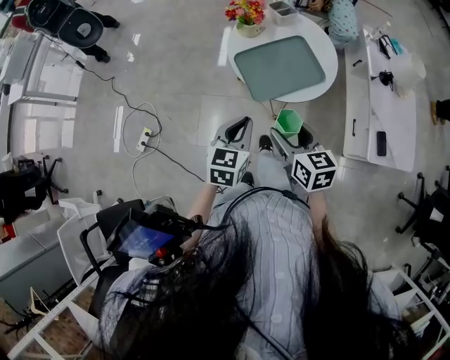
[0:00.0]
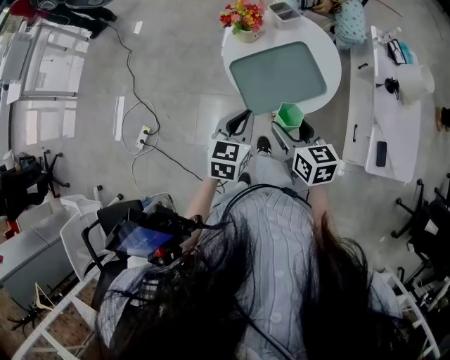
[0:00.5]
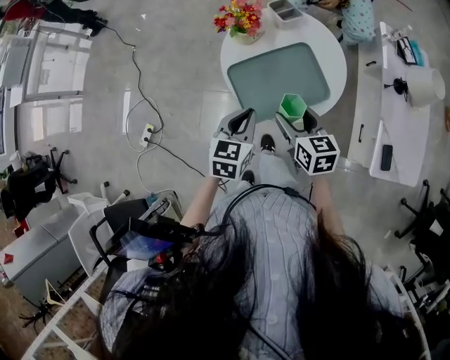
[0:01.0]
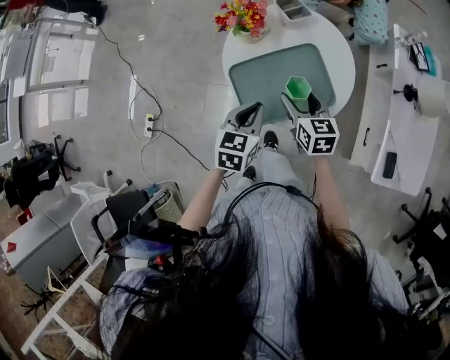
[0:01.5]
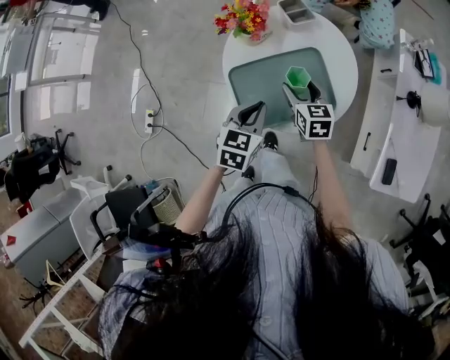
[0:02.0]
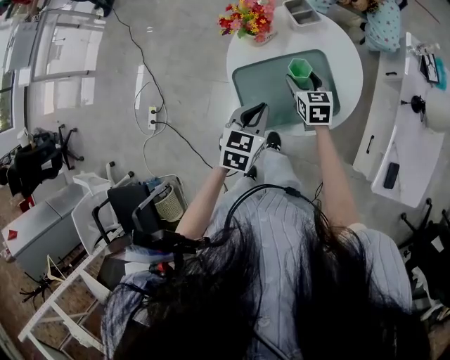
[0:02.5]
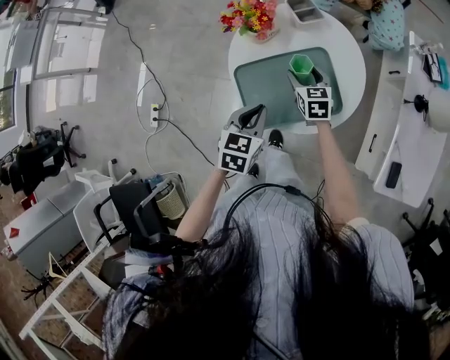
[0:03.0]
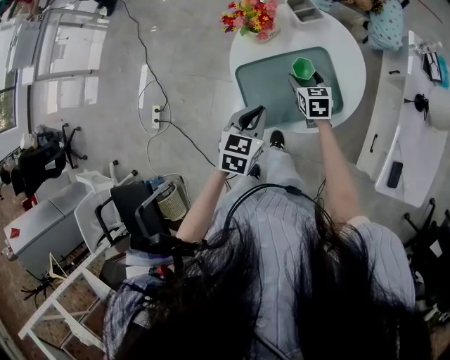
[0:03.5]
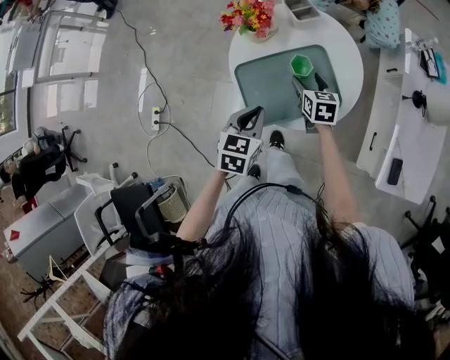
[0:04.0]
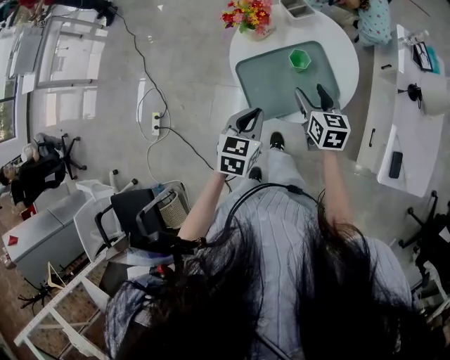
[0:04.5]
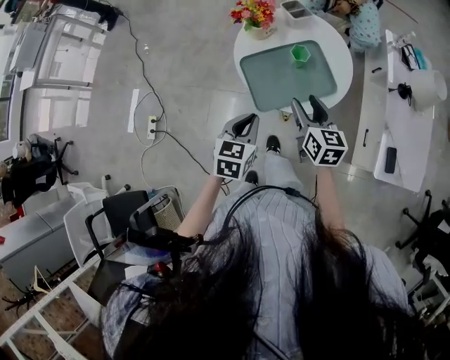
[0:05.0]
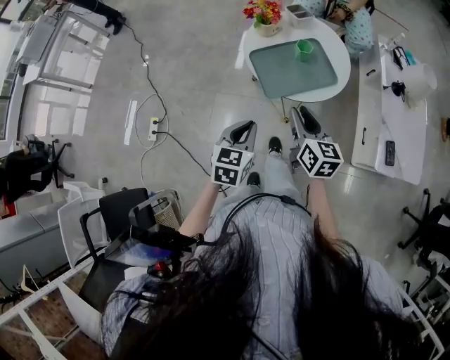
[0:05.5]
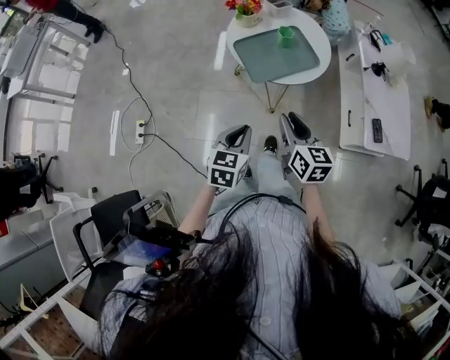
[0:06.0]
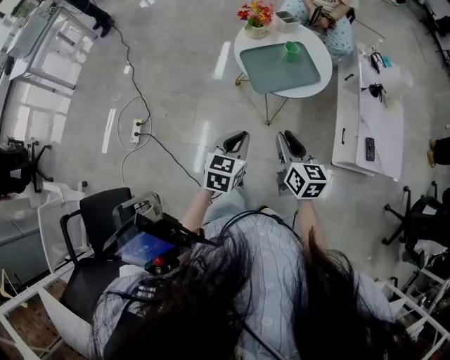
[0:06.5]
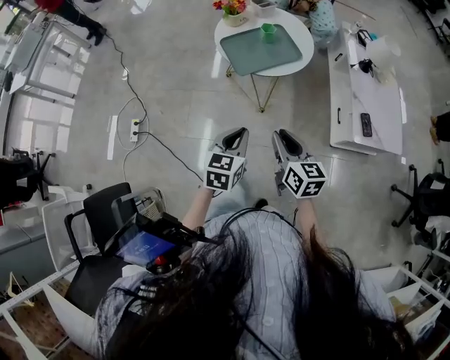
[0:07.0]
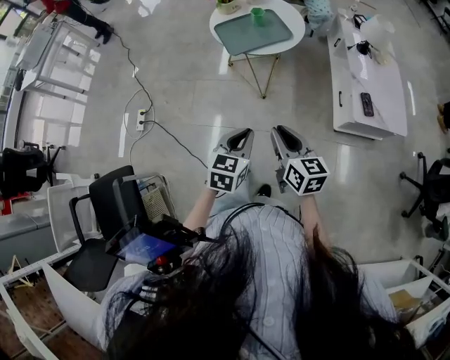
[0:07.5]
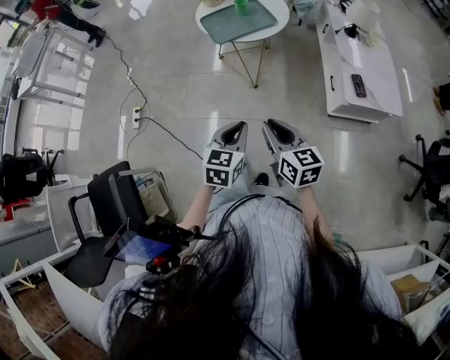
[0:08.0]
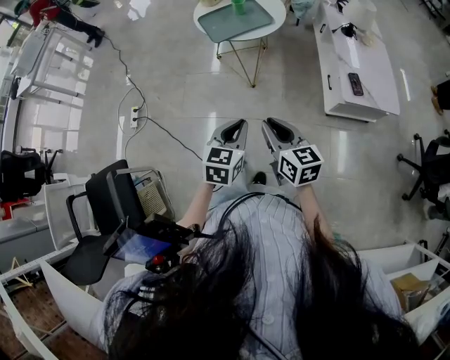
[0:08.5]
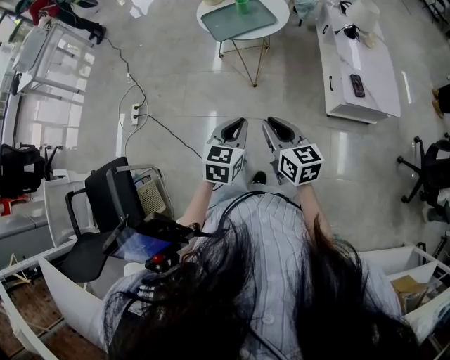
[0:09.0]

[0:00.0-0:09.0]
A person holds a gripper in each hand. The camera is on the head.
0:00.0 to 0:02.0: The left gripper moves forward and to the right, about 20 cm. The right gripper goes roughly 30 cm forward and downward.
0:02.0 to 0:04.5: The grippers both shift backward by about 5 cm.
0:04.5 to 0:07.0: Both grippers travel together backward, some 35 cm. The right gripper closes.
0:07.0 to 0:09.0: The right gripper goes some 15 cm backward. Meanwhile the left gripper moves backward and to the right, approximately 20 cm.

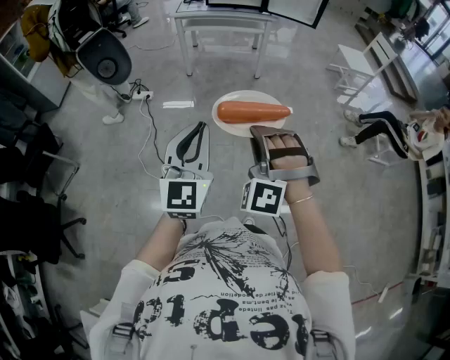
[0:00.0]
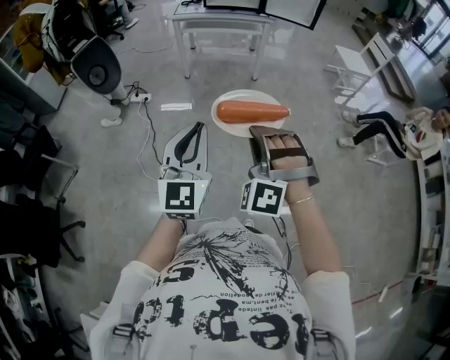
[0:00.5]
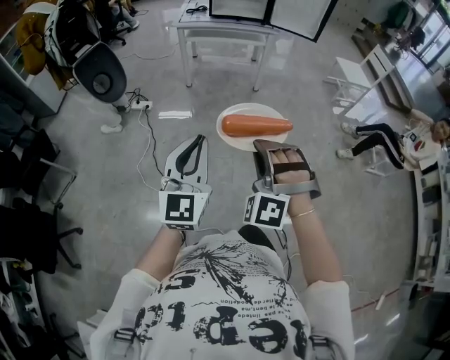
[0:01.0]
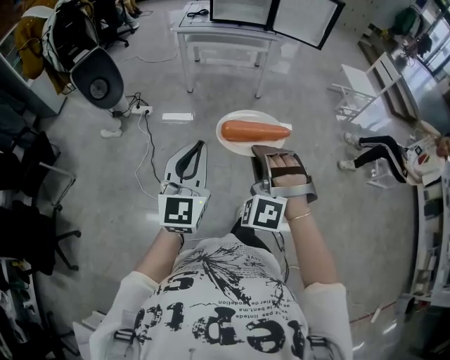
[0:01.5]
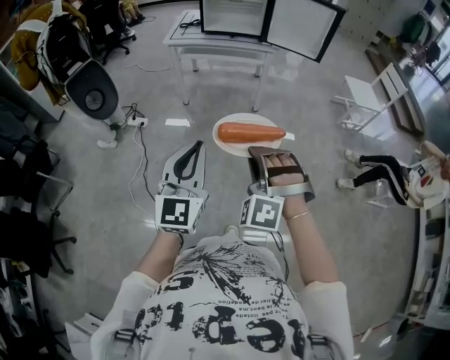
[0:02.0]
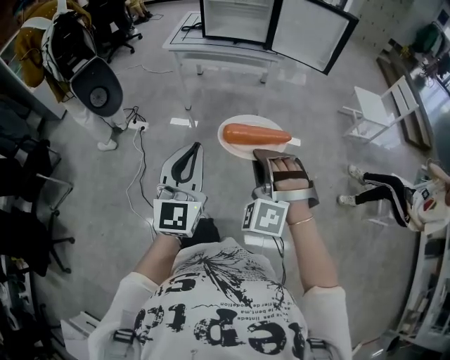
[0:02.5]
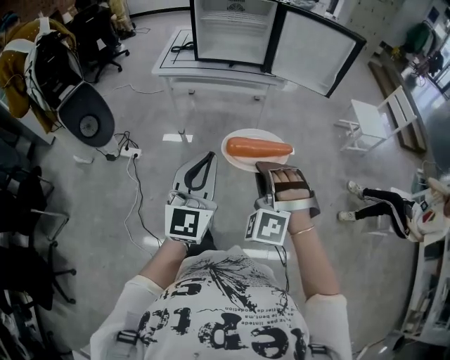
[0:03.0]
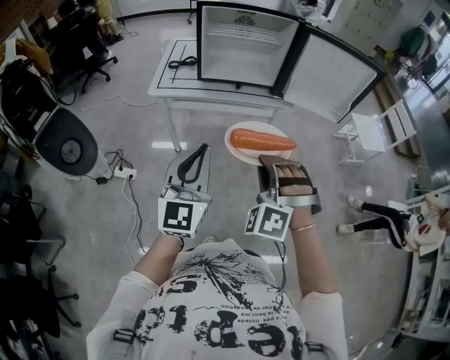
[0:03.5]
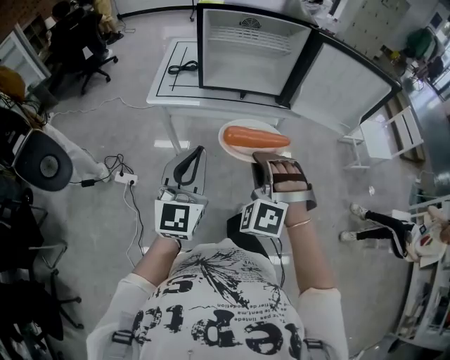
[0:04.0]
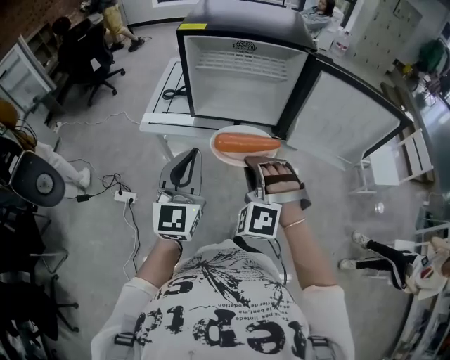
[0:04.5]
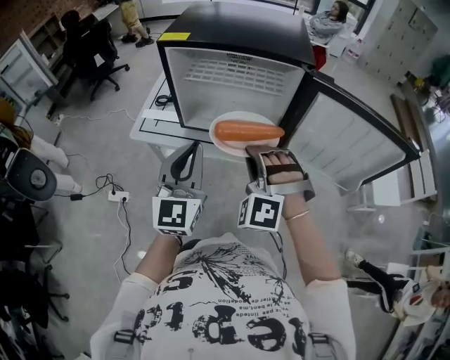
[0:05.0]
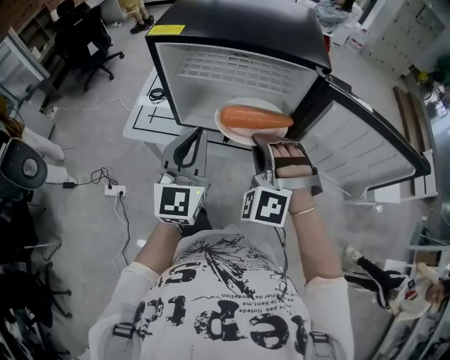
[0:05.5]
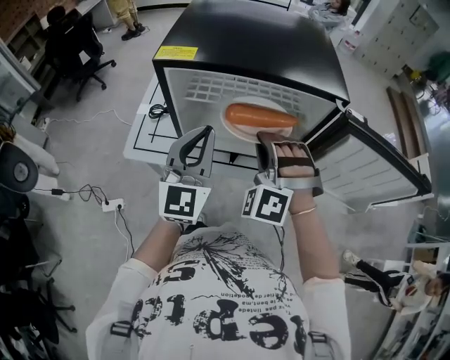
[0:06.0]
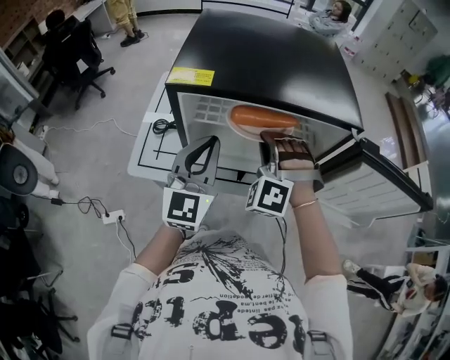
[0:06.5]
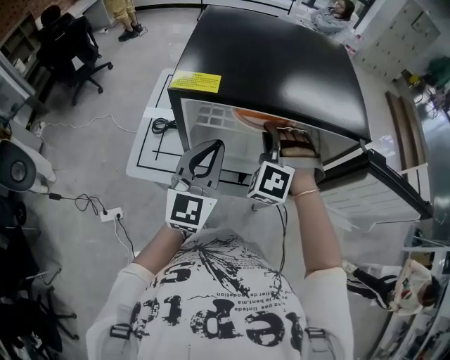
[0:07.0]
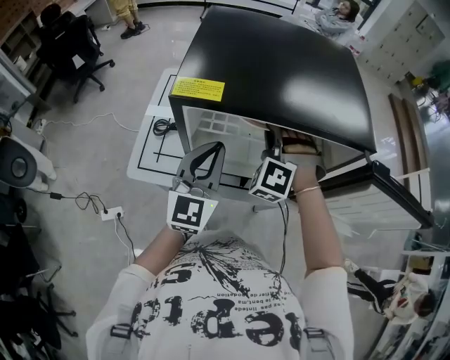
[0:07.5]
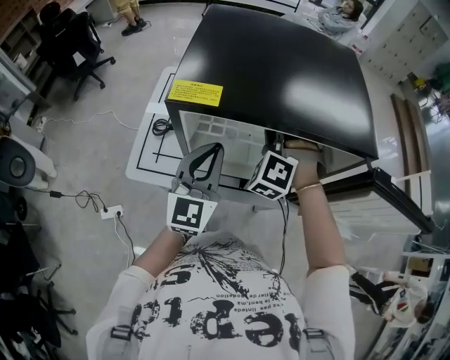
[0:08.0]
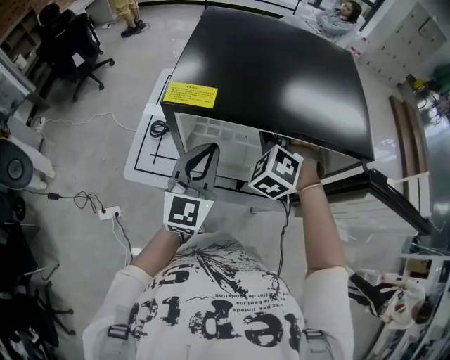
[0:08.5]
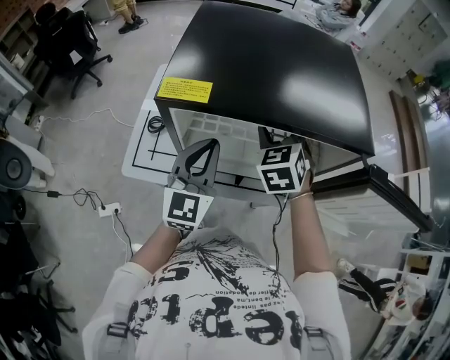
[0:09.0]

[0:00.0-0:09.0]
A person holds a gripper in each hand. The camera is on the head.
0:00.0 to 0:02.0: Both grippers travel together forward and to the right, approximately 25 cm.
0:02.0 to 0:04.5: The two grippers travel together, forward, about 70 cm.
0:04.5 to 0:07.0: The two grippers go some 35 cm forward.
0:07.0 to 0:09.0: The right gripper rolls clockwise, seen from behind, by approximately 50 degrees, and opens up.

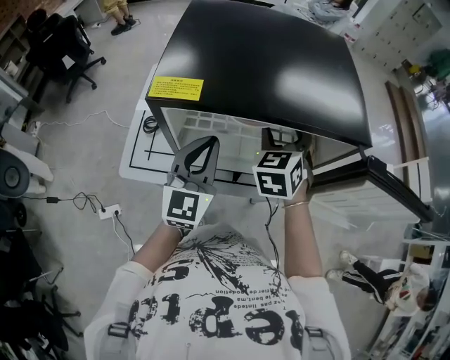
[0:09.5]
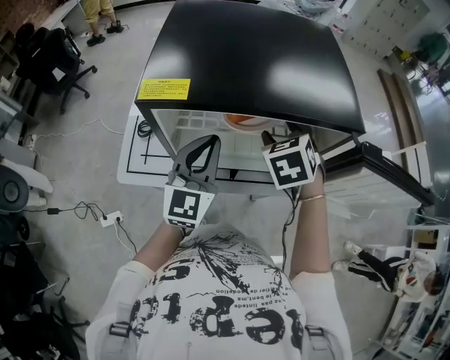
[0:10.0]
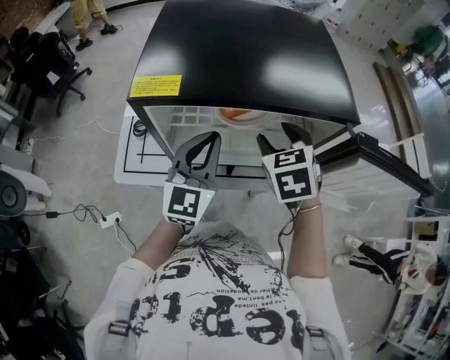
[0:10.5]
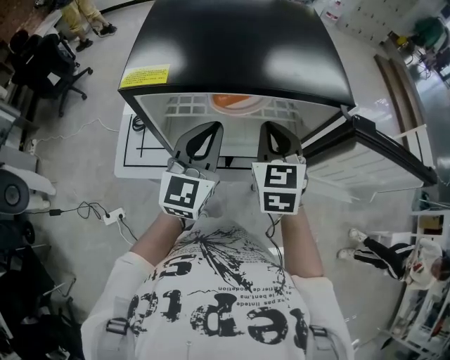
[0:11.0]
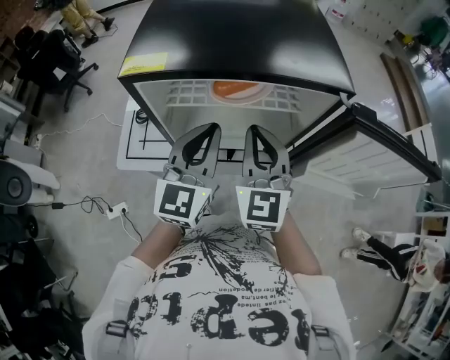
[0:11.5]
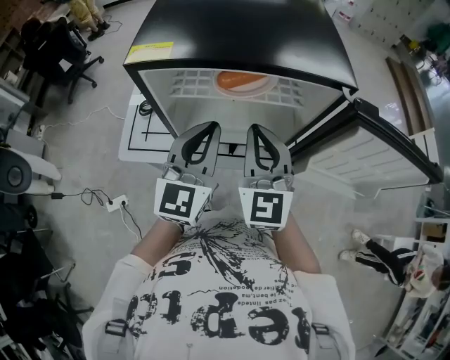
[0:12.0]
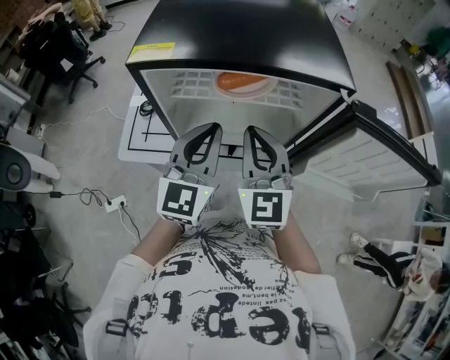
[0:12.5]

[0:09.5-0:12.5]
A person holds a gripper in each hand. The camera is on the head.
0:09.5 to 0:11.0: The left gripper is displaced to the right by approximately 5 cm, while the right gripper travels backward by approximately 5 cm, and closes.
0:11.0 to 0:12.5: Both grippers travel together backward, some 5 cm. The right gripper turns by approximately 20 degrees.

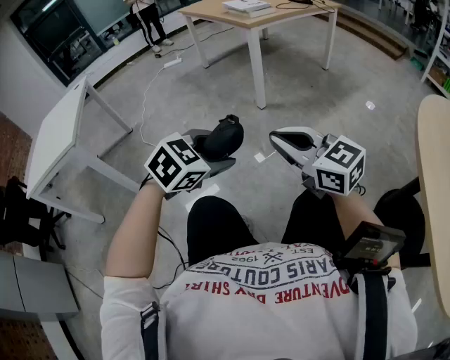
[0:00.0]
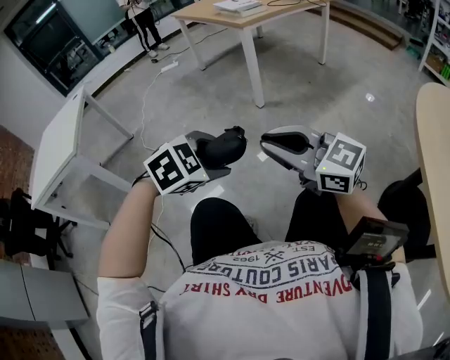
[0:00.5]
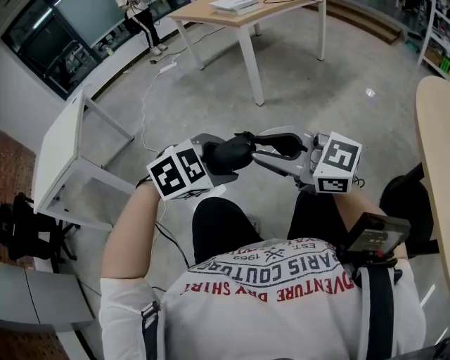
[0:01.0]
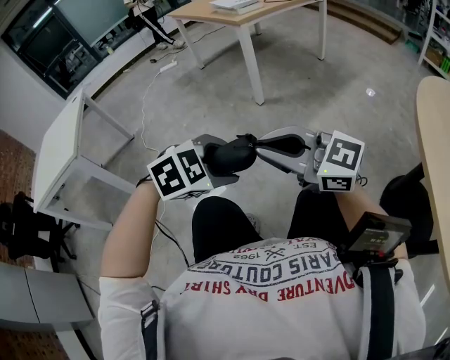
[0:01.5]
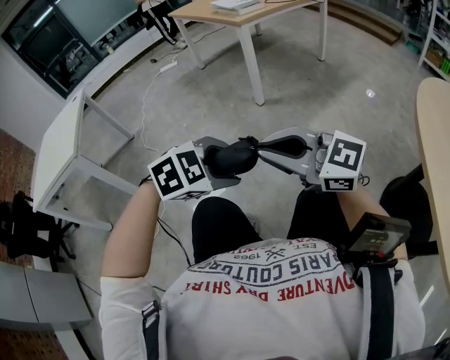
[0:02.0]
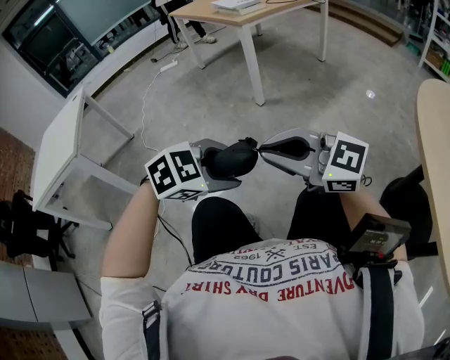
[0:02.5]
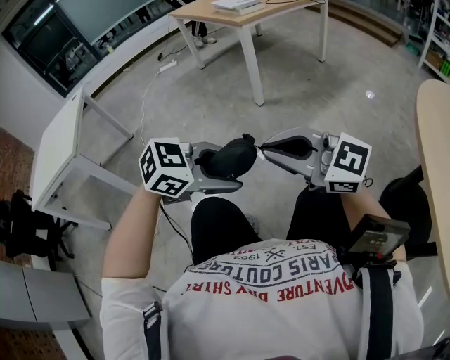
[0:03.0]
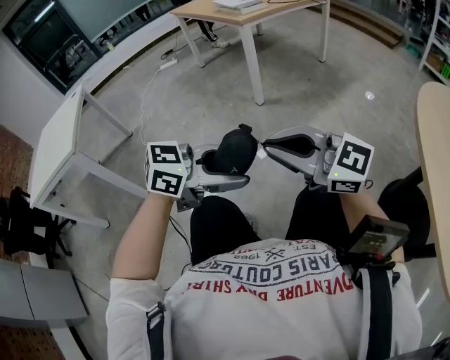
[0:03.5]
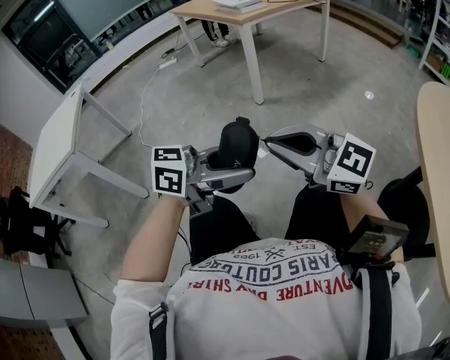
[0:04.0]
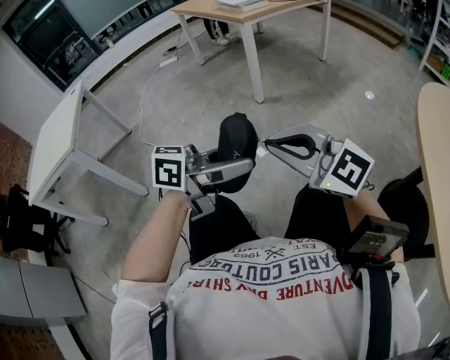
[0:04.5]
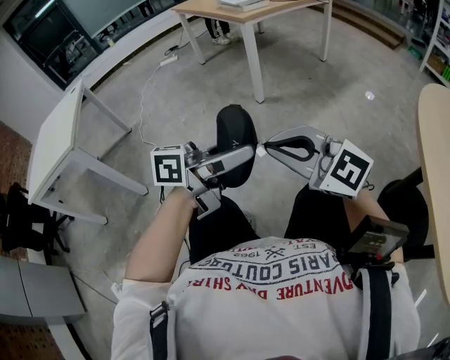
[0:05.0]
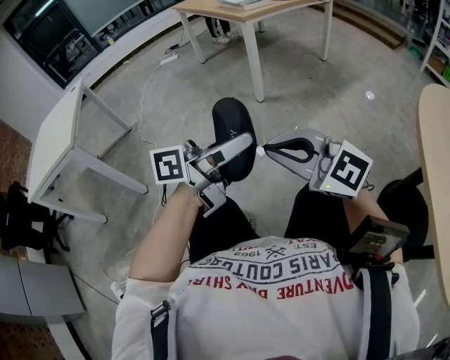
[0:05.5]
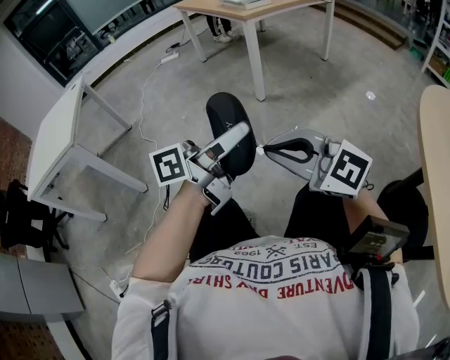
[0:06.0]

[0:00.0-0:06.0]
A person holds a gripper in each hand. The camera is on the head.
0:00.0 to 0:02.0: The right gripper moves approximately 5 cm, and opens, then closes again; the left gripper ends up about 5 cm from where it was, and swivels some 20 degrees.
0:02.0 to 0:04.0: The left gripper goes some 5 cm upward, and tips its fingers upward by about 50 degrees.
0:04.0 to 0:06.0: The left gripper ends up roughly 5 cm from where it was, and turns by about 40 degrees.
